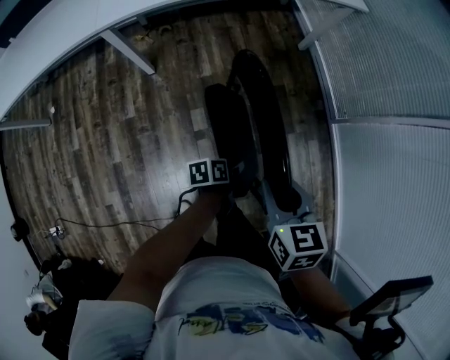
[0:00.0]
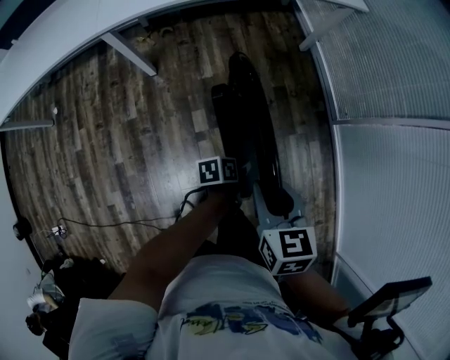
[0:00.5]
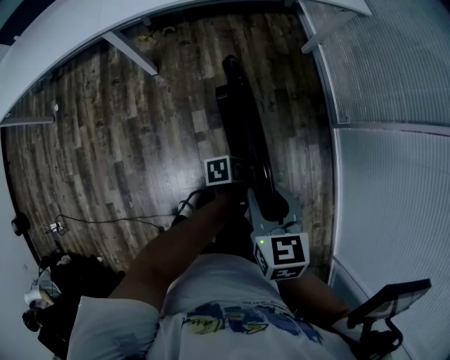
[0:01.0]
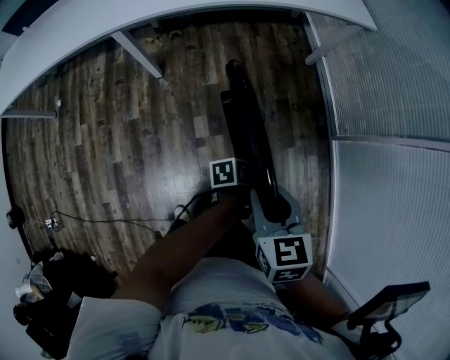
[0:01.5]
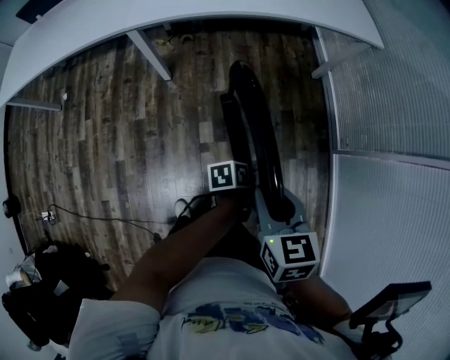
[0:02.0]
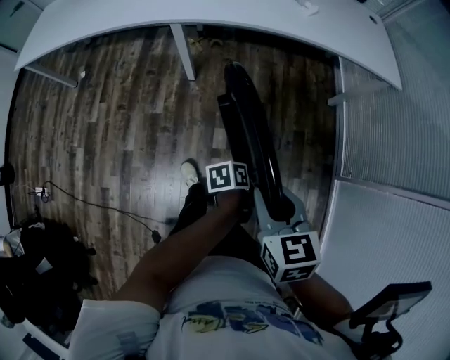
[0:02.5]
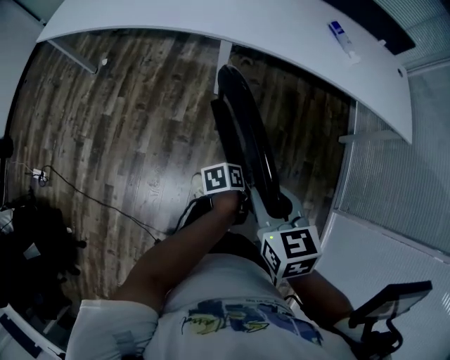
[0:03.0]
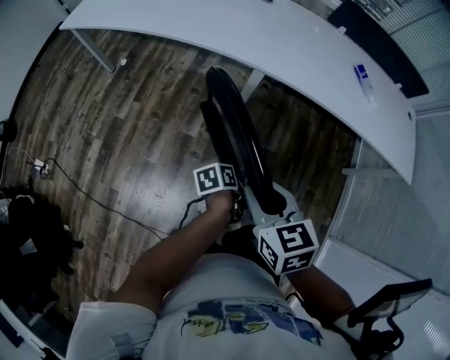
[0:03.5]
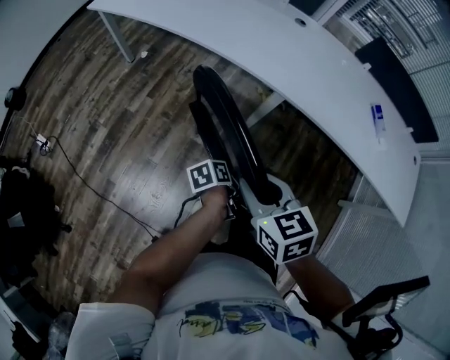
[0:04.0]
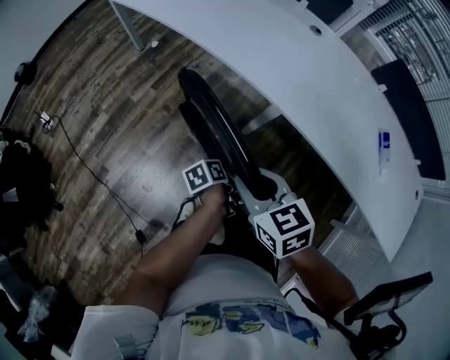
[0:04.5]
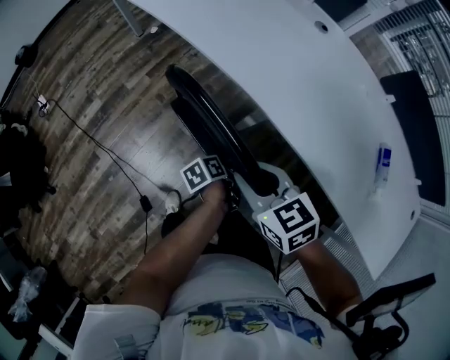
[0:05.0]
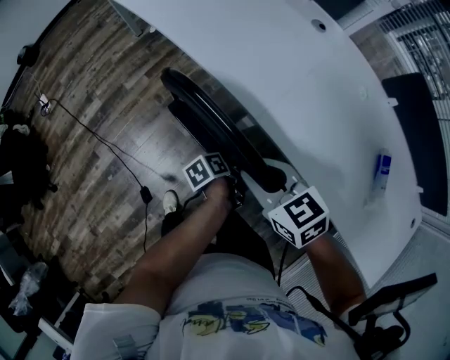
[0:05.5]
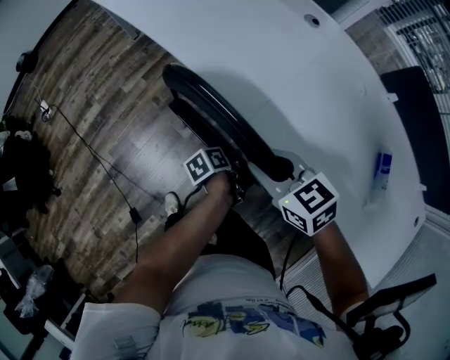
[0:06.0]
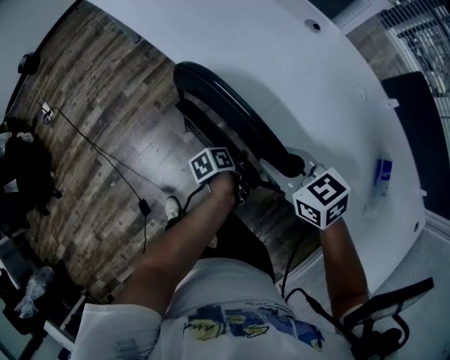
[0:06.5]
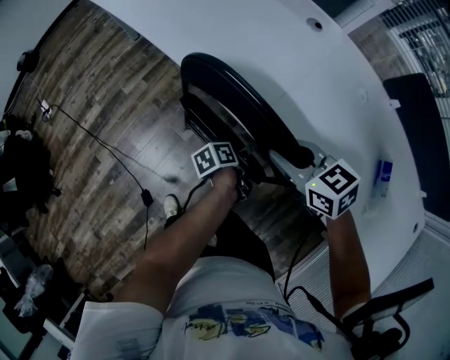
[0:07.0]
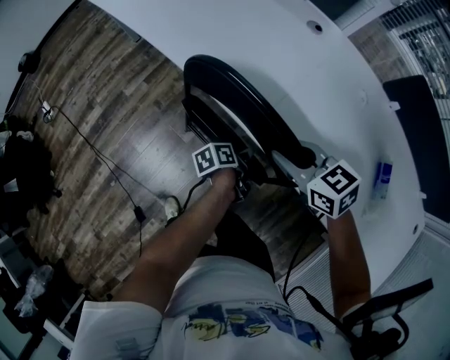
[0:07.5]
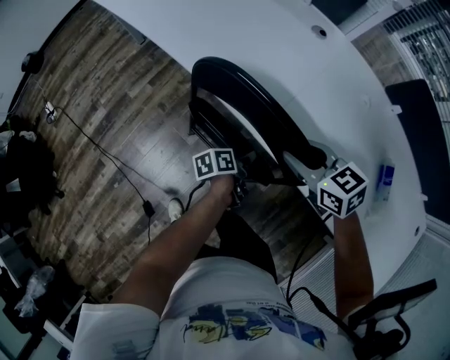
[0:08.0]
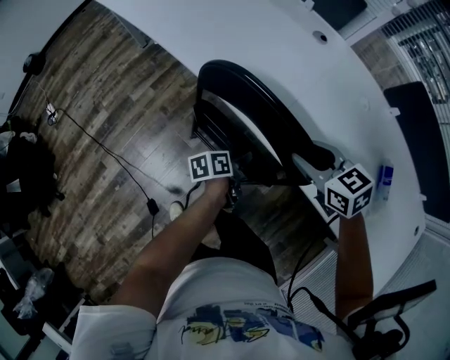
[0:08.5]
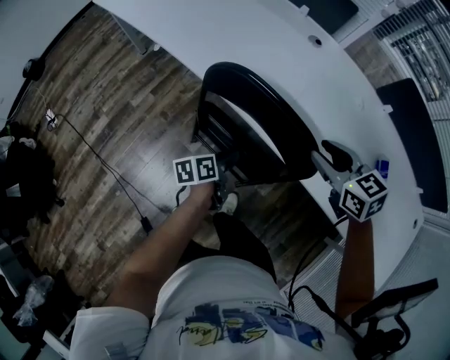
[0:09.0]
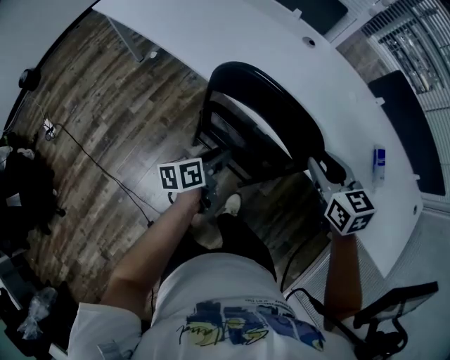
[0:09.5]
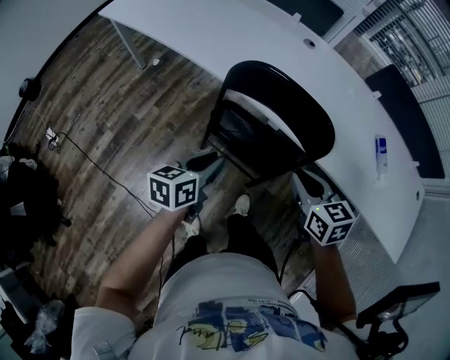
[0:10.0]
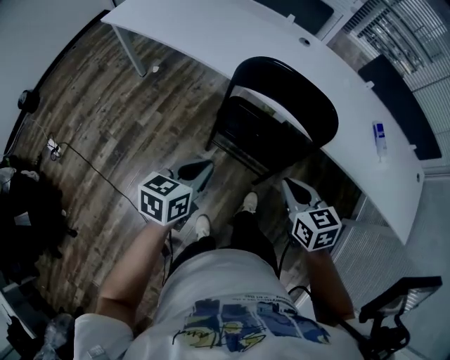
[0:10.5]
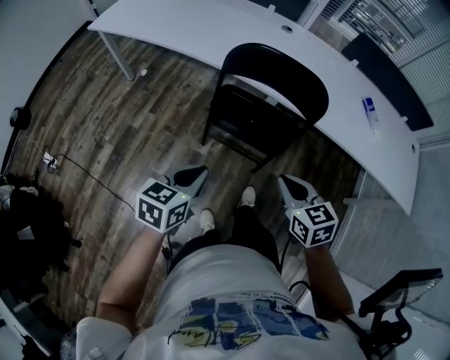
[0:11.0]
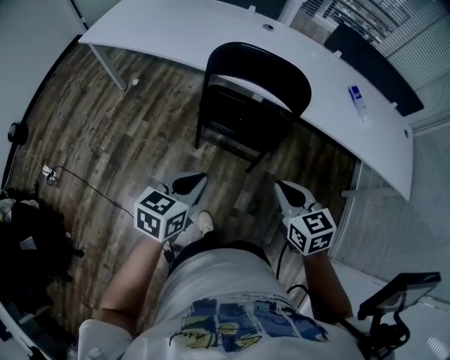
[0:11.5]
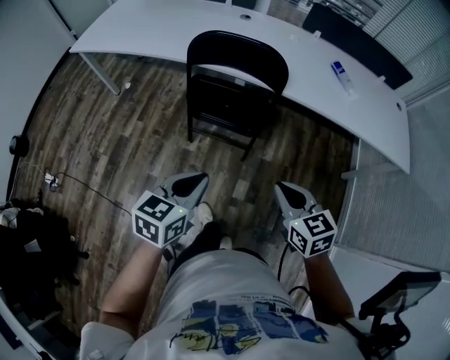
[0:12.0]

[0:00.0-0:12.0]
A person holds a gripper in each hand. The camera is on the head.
0.0 to 2.0 s: The right gripper shifts by roughly 5 cm.
2.0 to 4.0 s: The pair of grippers is taken roughly 50 cm. The left gripper changes its angle by about 50 degrees. The right gripper swivels some 50 degrees.
4.0 to 6.0 s: The right gripper ends up about 30 cm from where it was, and turns by approximately 30 degrees; the left gripper ends up about 25 cm from where it was, and turns by some 30 degrees.
6.0 to 8.0 s: The right gripper travels to the right and forward by approximately 10 cm.
8.0 to 10.0 s: The left gripper moves to the left, upward and backward, roughly 30 cm, and rolls clockwise, seen from behind, by roughly 50 degrees, while the right gripper shifts some 15 cm backward and to the left, and swivels about 30 degrees.
10.0 to 12.0 s: The grippers both shift backward by approximately 30 cm. The left gripper changes its angle by about 30 degrees.

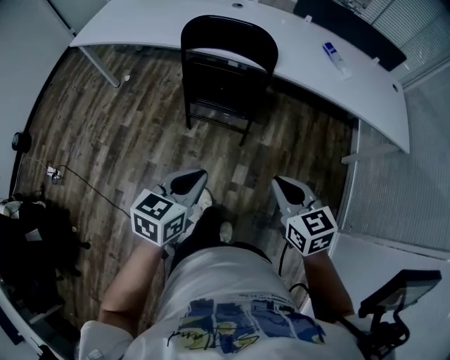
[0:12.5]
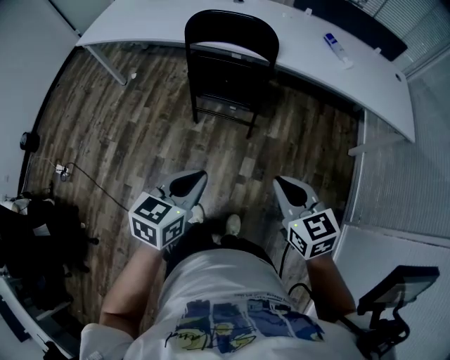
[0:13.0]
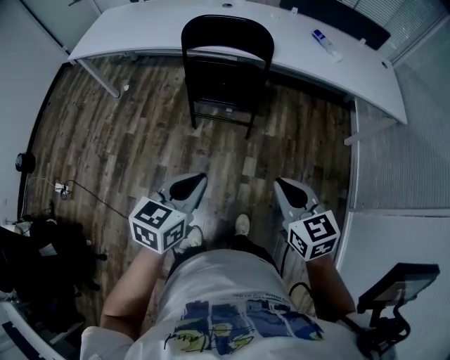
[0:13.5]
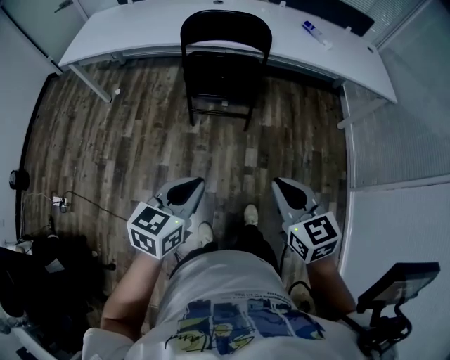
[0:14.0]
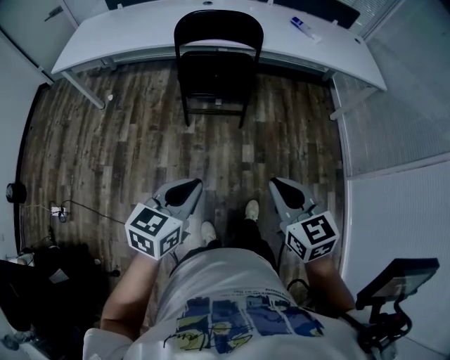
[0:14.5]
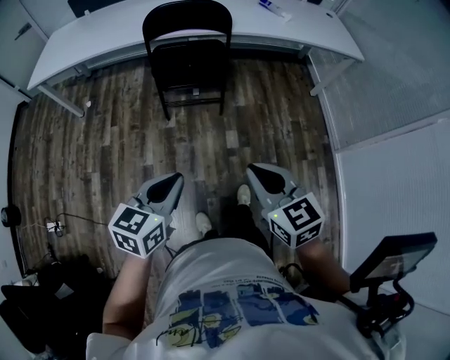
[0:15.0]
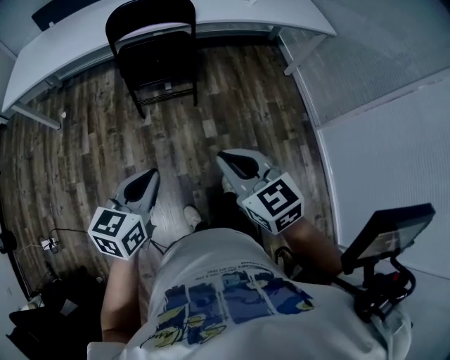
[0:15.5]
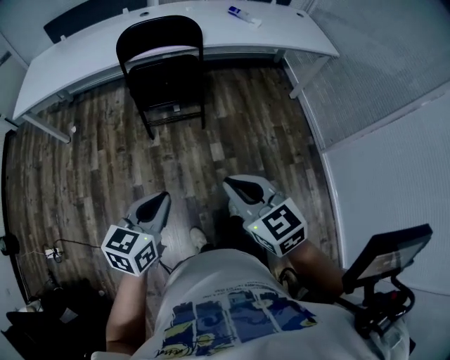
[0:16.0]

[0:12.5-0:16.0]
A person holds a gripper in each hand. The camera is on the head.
12.5 to 14.5 s: The two grippers go some 25 cm backward and to the left.
14.5 to 16.0 s: There are only small adjustments of the grippers.

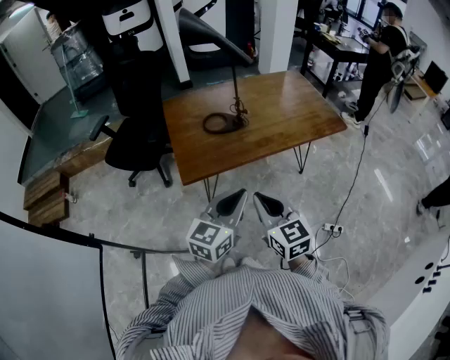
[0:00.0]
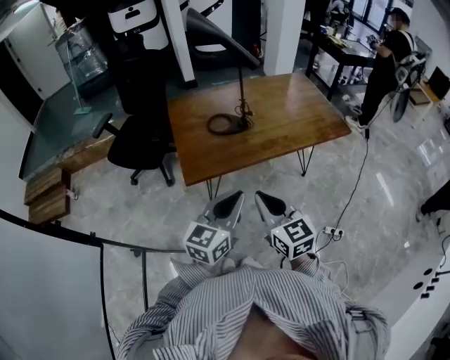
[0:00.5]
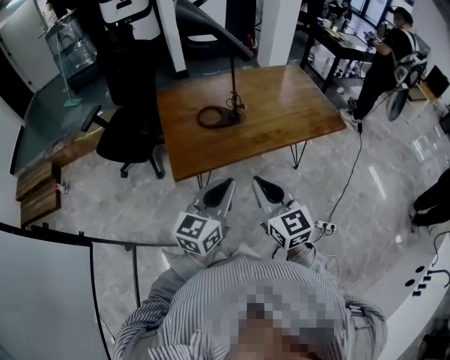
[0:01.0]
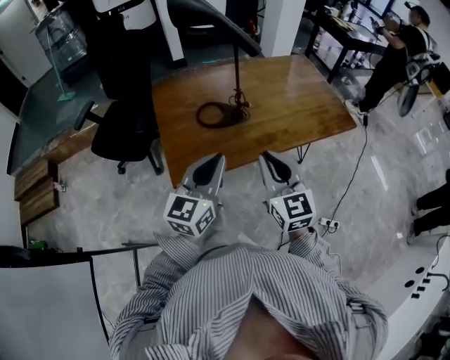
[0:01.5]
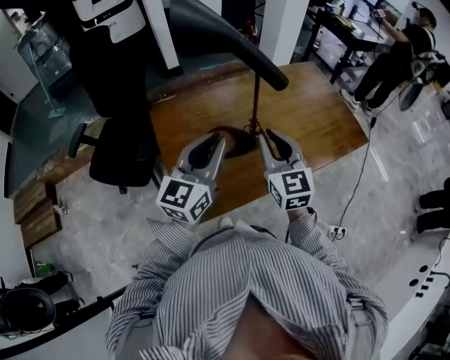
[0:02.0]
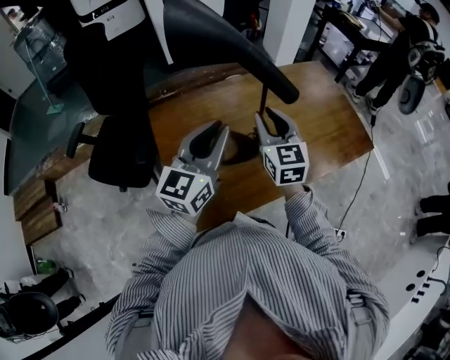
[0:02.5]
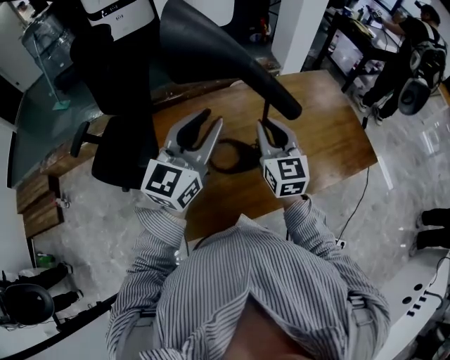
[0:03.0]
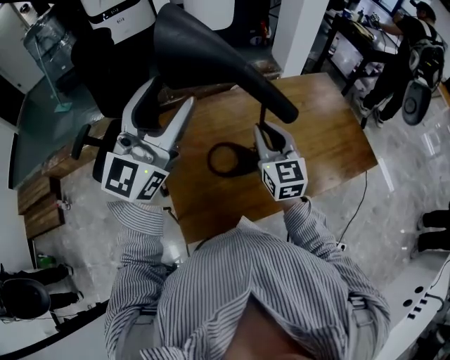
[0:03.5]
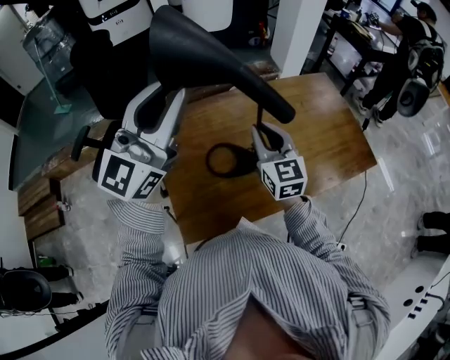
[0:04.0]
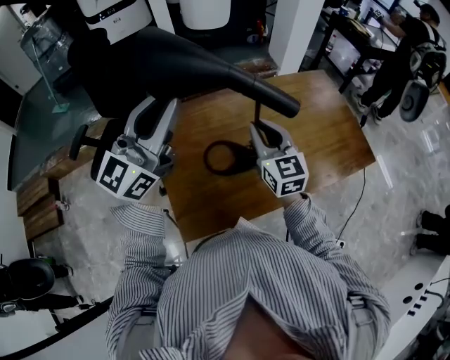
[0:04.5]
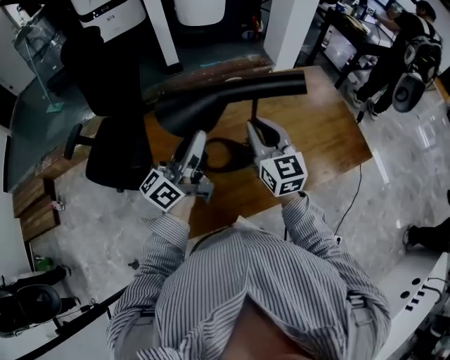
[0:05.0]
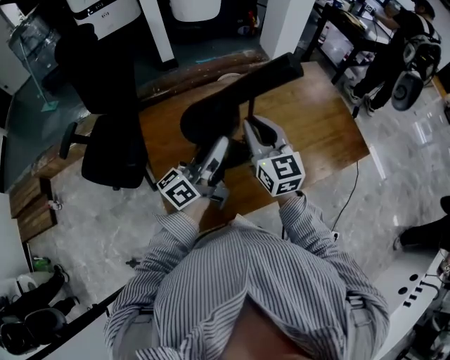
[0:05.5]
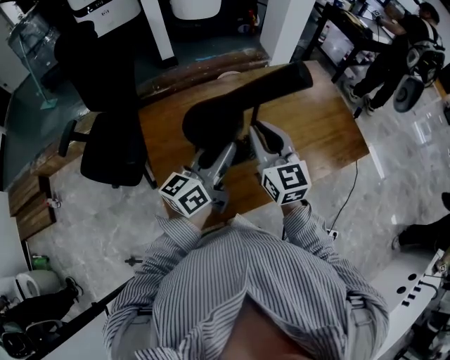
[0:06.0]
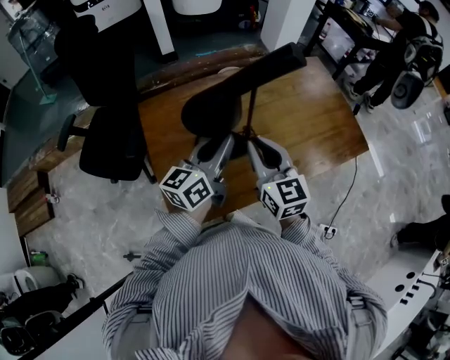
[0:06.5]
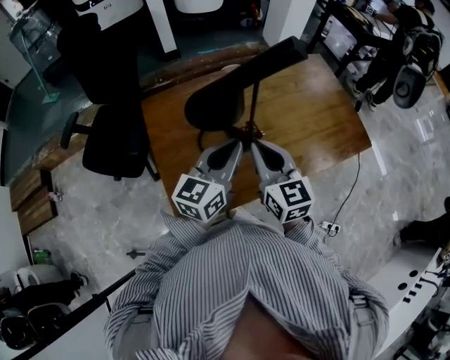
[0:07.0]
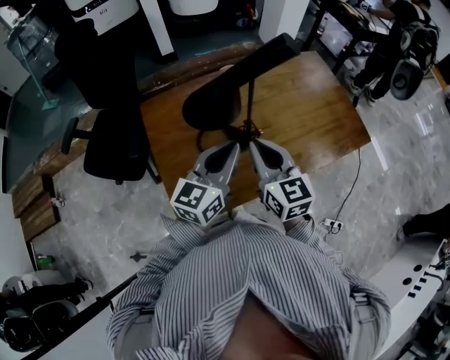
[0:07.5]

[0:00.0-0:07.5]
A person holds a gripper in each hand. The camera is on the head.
0.0 to 2.0 s: The grippers both shift forward by about 40 cm.
2.0 to 4.0 s: The left gripper goes approximately 20 cm upward and forward, rotates approximately 30 degrees, and opens, then closes again; the right gripper goes approximately 10 cm forward.
4.0 to 5.5 s: The left gripper goes about 20 cm downward, and rolls counterclockwise, seen from behind, by approximately 60 degrees.
5.5 to 7.5 s: The left gripper shifts roughly 5 cm backward, and turns by about 40 degrees. Meanwhile the right gripper shifts about 10 cm backward.

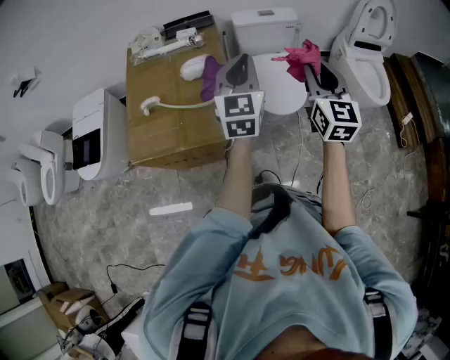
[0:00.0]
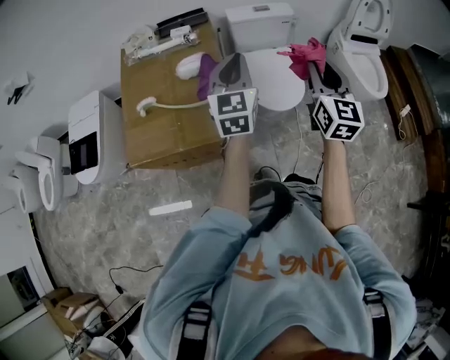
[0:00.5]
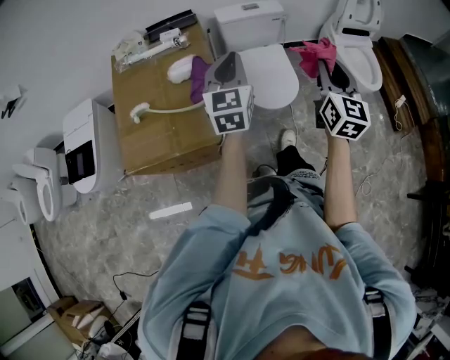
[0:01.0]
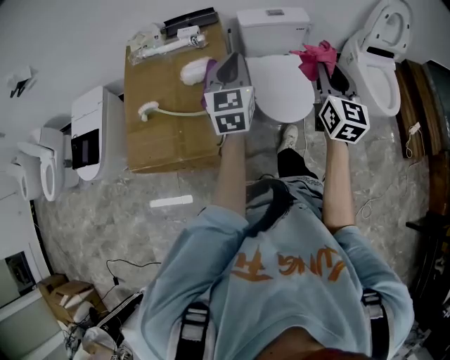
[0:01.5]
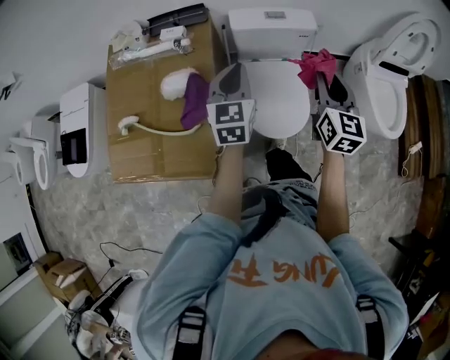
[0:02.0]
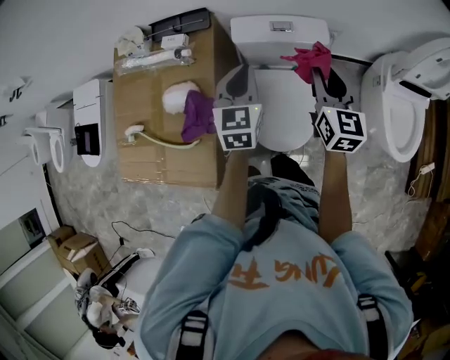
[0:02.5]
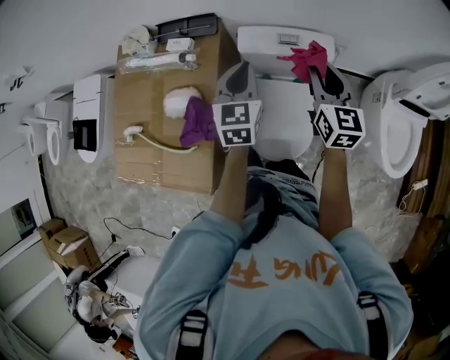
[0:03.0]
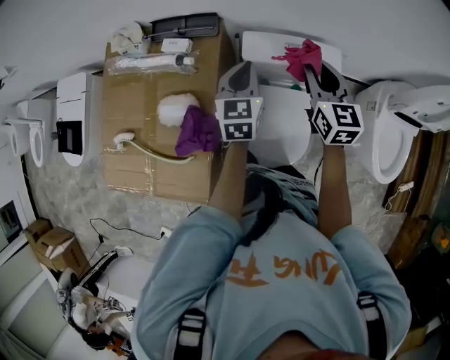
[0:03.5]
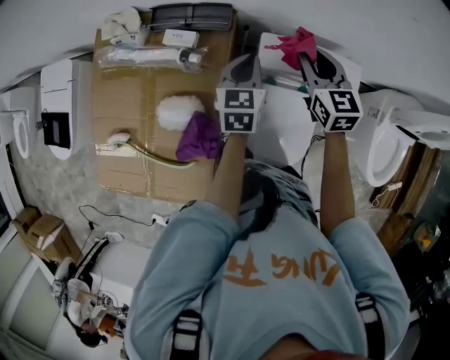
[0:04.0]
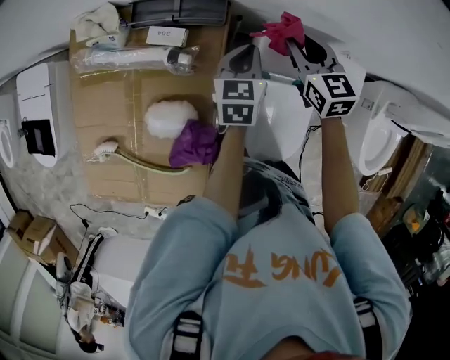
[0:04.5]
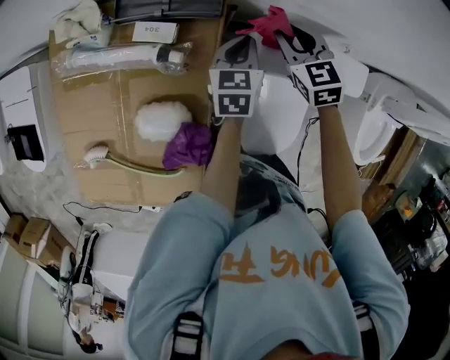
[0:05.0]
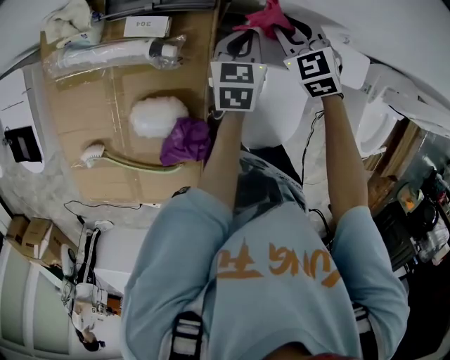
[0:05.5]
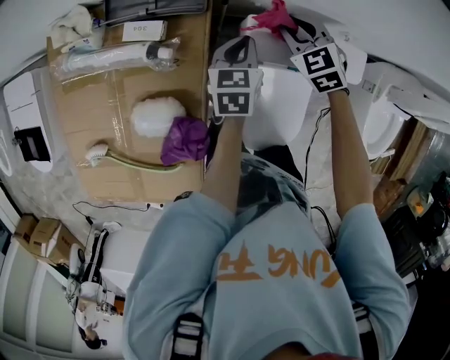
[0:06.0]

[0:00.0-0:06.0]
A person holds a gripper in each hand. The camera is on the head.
0.0 to 2.0 s: Both grippers move forward and downward, about 30 cm.
2.0 to 4.0 s: The two grippers go approximately 35 cm forward. The right gripper changes its angle by roughly 30 degrees.
4.0 to 6.0 s: The right gripper travels downward and forward by roughly 15 cm, and changes its angle by approximately 30 degrees. Meanwhile the left gripper travels downward by approximately 10 cm.
